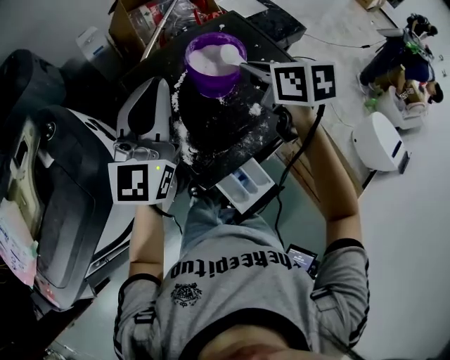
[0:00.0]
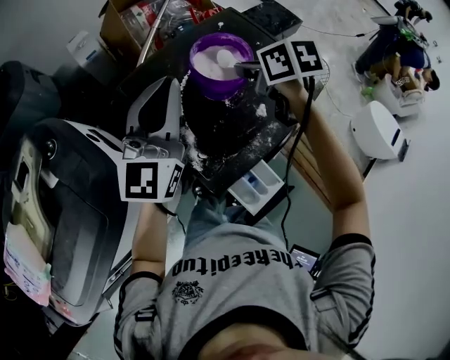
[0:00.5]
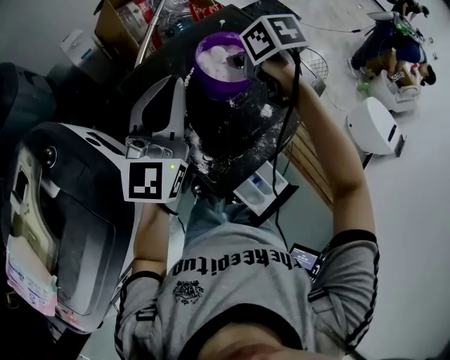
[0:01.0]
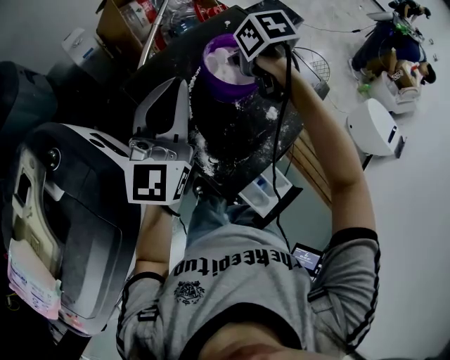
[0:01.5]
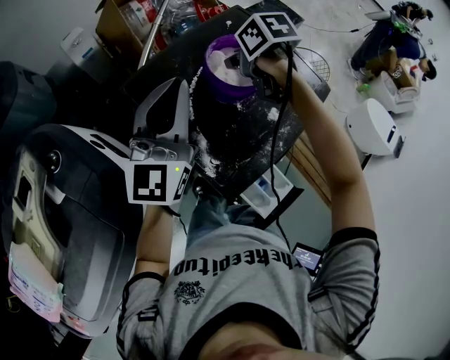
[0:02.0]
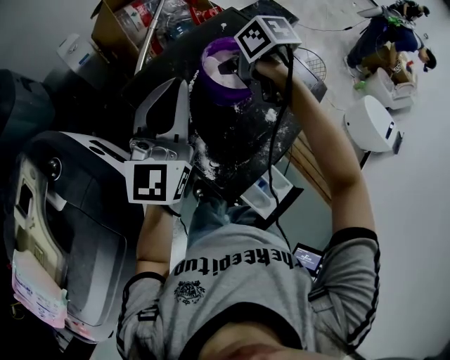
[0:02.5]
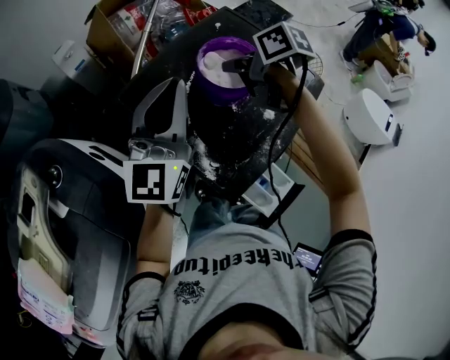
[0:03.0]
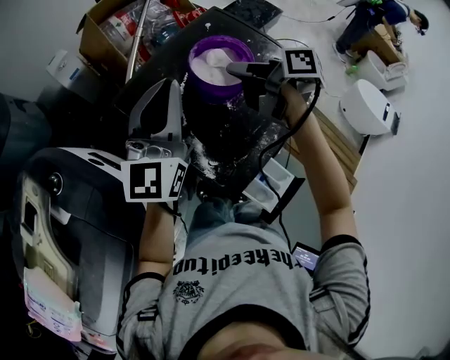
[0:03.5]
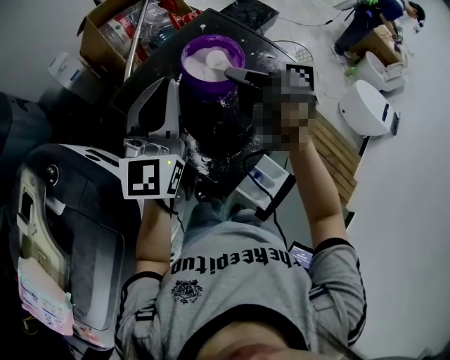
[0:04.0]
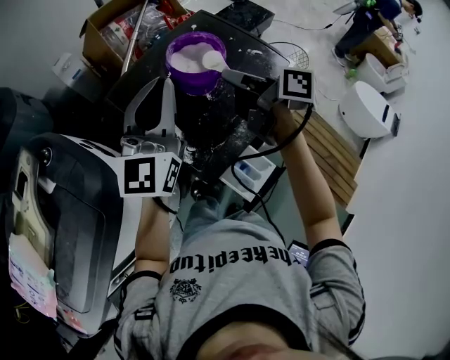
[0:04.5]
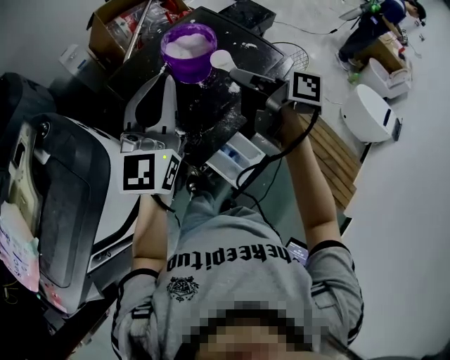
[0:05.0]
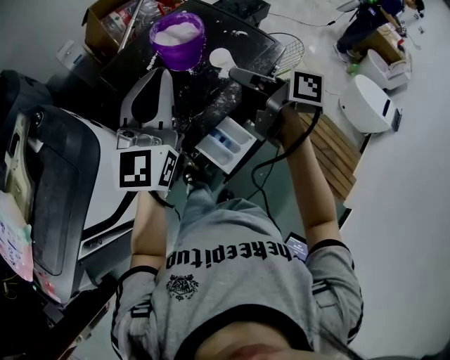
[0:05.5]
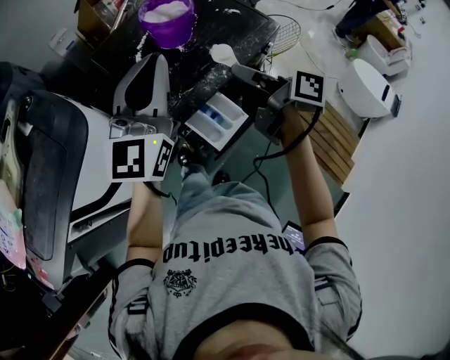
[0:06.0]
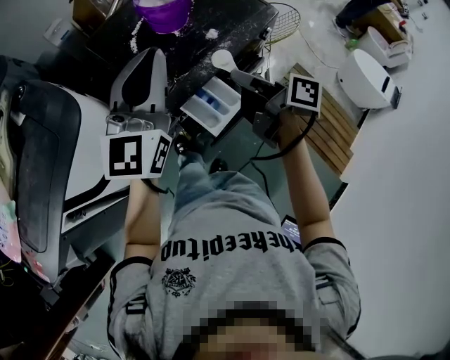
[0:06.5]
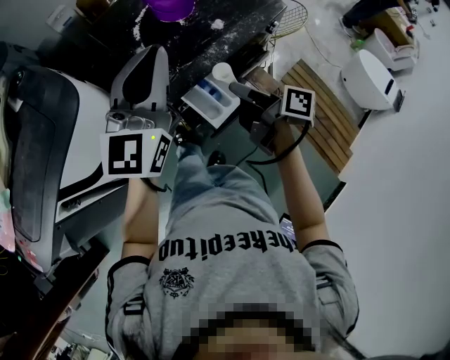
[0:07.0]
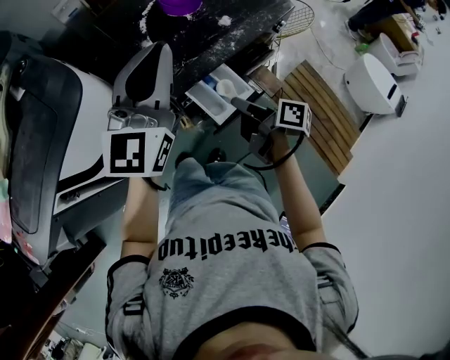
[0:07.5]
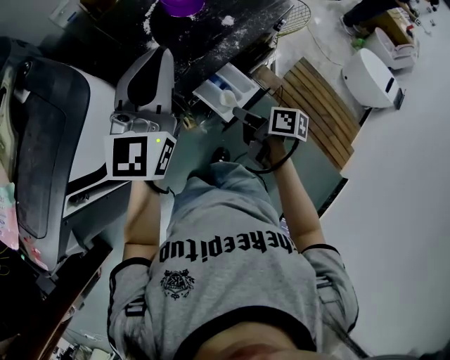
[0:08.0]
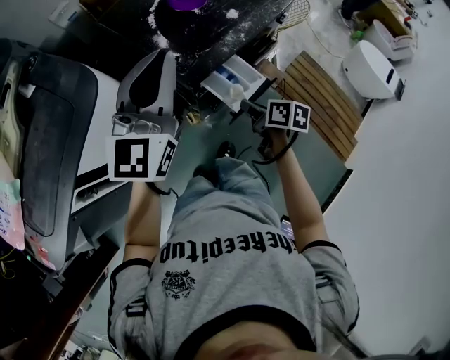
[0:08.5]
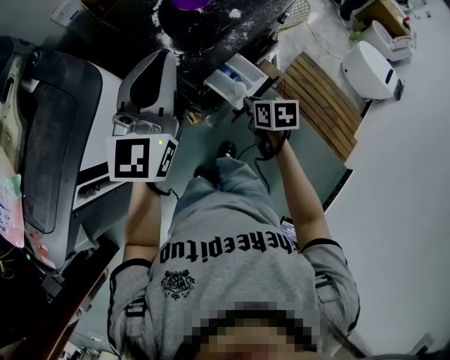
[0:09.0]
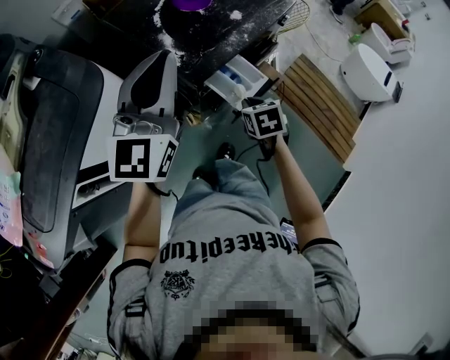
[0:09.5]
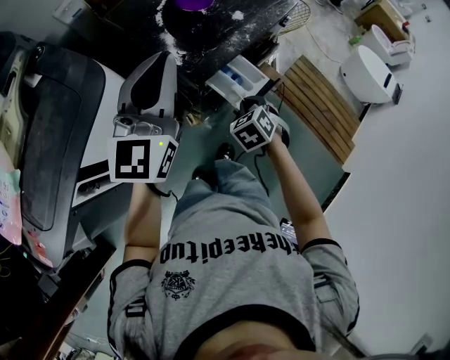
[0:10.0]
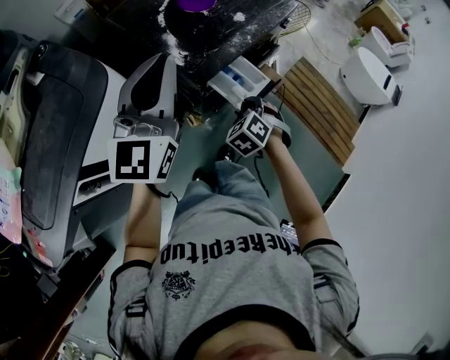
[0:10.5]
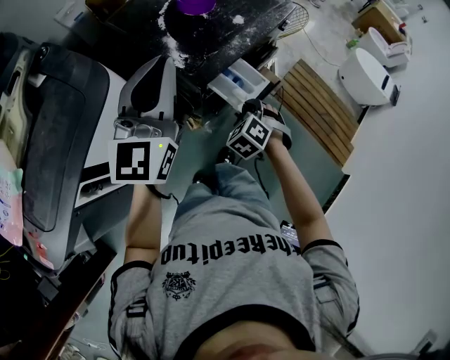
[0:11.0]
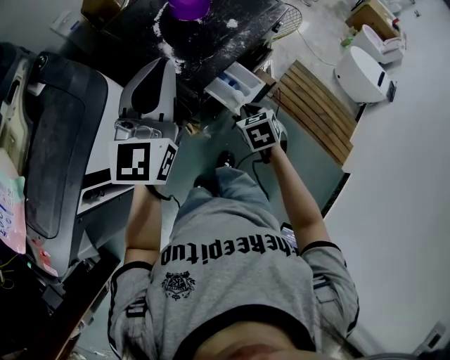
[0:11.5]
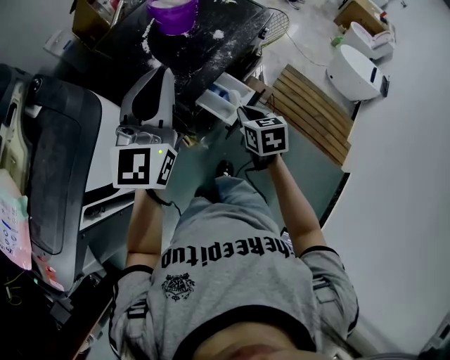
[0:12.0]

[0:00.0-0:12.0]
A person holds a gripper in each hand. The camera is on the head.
0:00.0 to 0:02.0: The right gripper moves forward, downward and to the left, approximately 15 cm, and changes its angle by about 30 degrees. The left gripper travels forward by approximately 5 cm.
0:02.0 to 0:04.0: The right gripper shifts some 10 cm backward, and points its fingers roughly 40 degrees further upward.
0:04.0 to 0:06.0: The grippers both shift backward by about 25 cm.
0:06.0 to 0:08.0: The left gripper shifts by about 5 cm. The right gripper moves downward and backward, roughly 25 cm, and rotates roughly 20 degrees.
0:08.0 to 0:10.0: The right gripper rotates around the line of its fingers by some 70 degrees, counterclockwise from behind, while the left gripper moves some 5 cm.
0:10.0 to 0:12.0: The right gripper heads upward, covering some 5 cm, and swivels approximately 40 degrees.

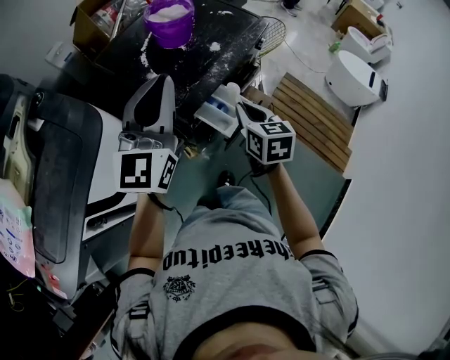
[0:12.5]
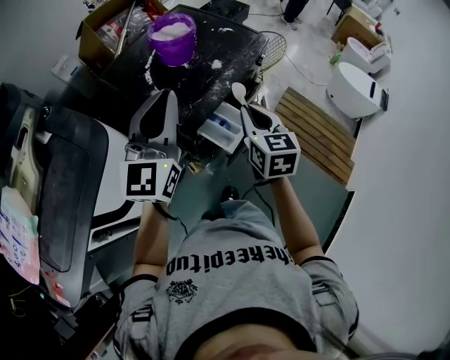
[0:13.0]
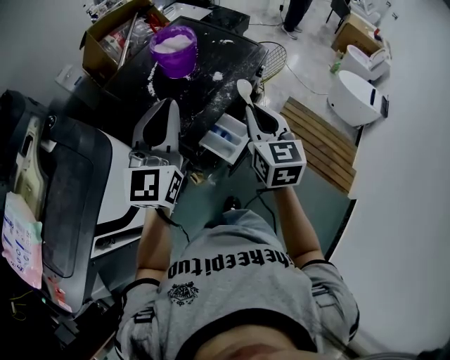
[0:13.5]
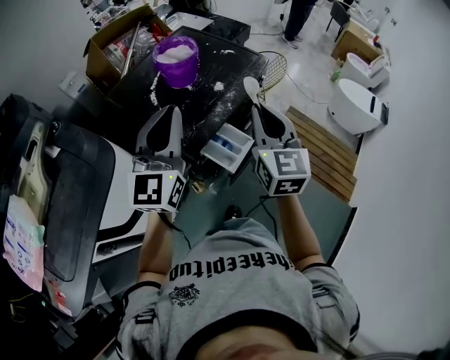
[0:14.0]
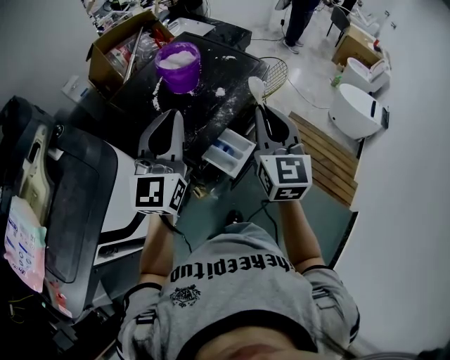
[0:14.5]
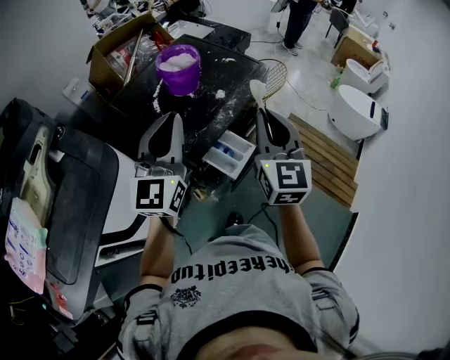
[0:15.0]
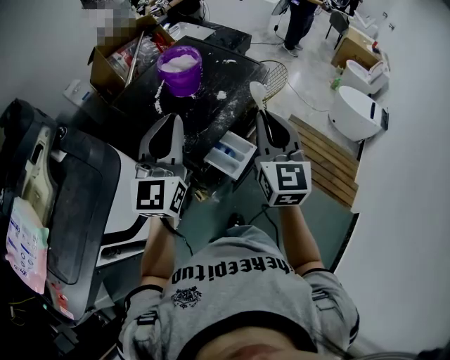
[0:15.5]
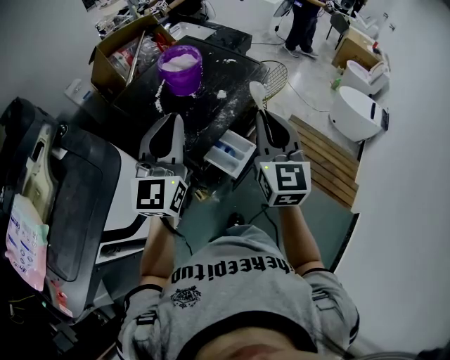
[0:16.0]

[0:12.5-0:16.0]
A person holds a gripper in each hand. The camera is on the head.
0:12.5 to 0:14.5: The right gripper is displaced upward by some 20 cm, and changes its angle by approximately 40 degrees.
0:14.5 to 0:16.0: There are only small adjustments of the grippers.

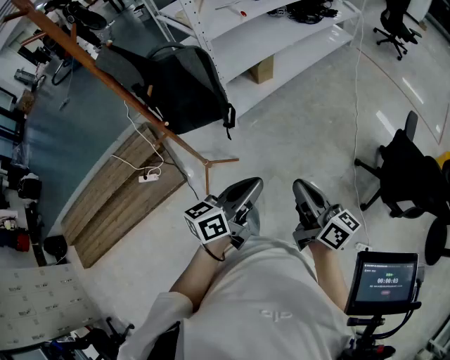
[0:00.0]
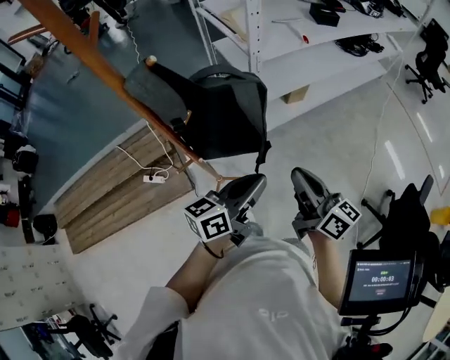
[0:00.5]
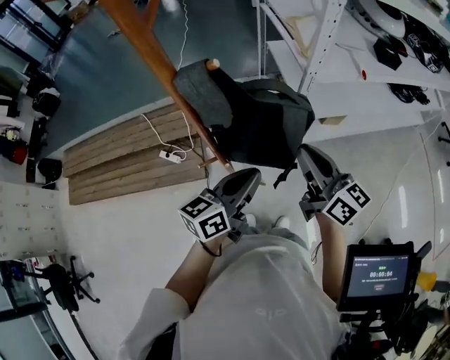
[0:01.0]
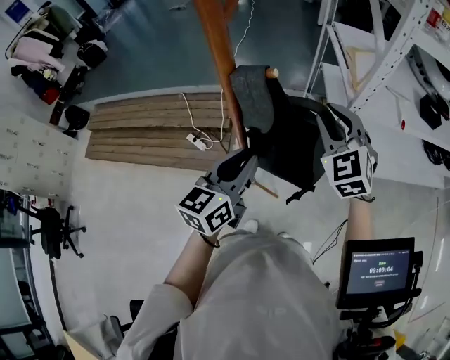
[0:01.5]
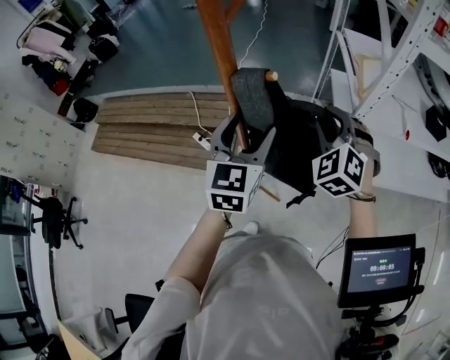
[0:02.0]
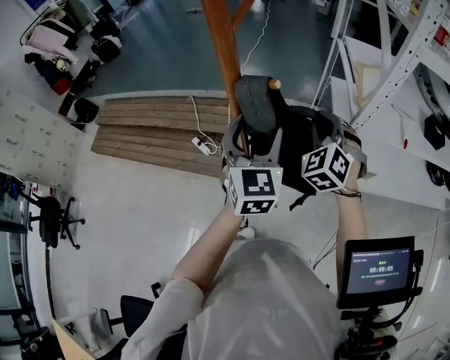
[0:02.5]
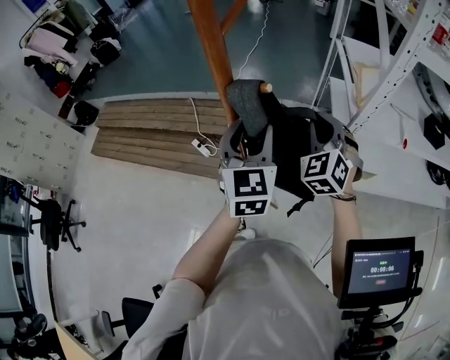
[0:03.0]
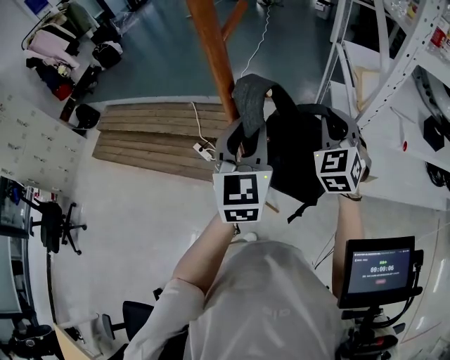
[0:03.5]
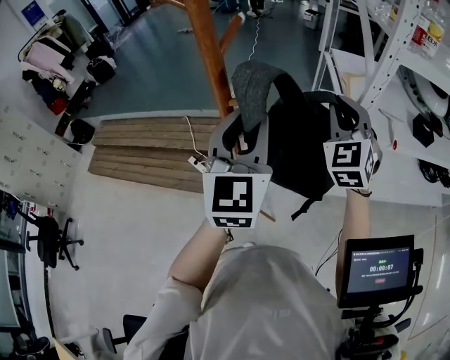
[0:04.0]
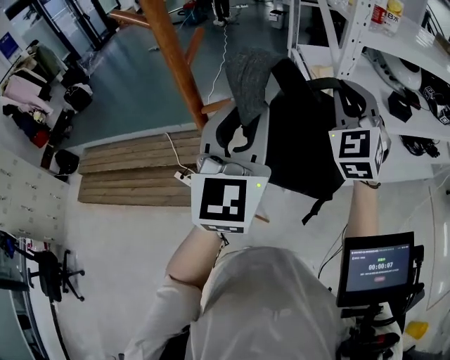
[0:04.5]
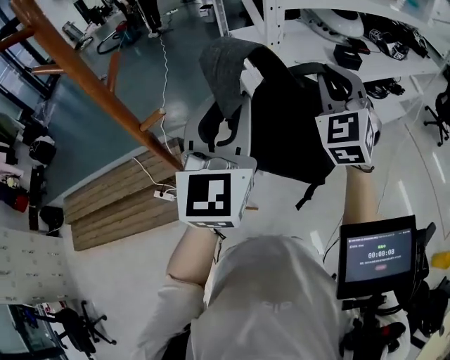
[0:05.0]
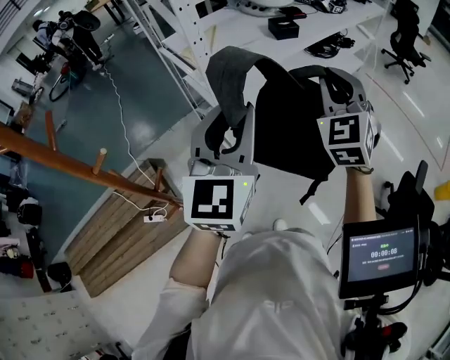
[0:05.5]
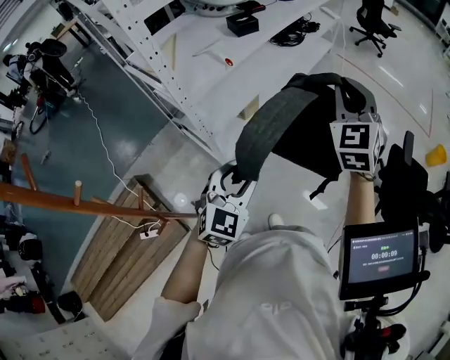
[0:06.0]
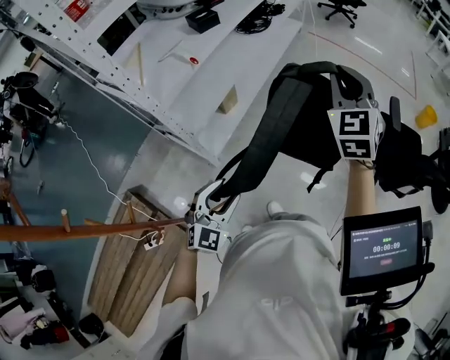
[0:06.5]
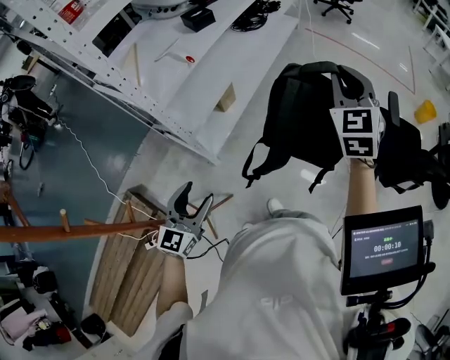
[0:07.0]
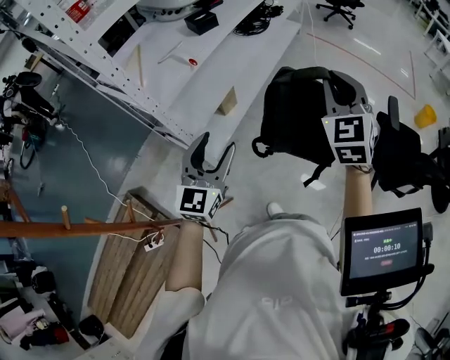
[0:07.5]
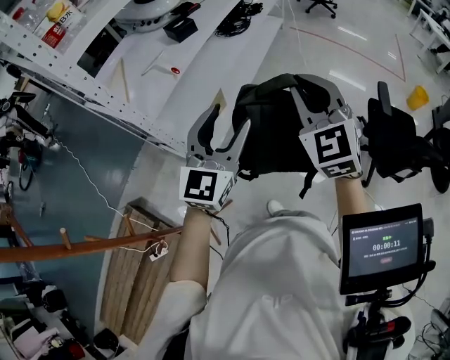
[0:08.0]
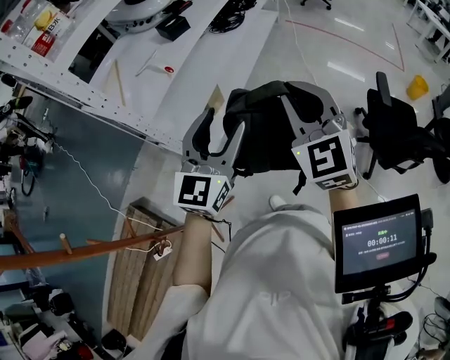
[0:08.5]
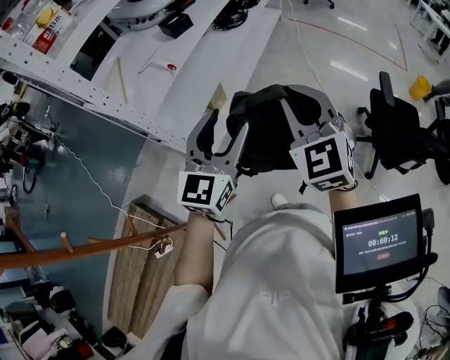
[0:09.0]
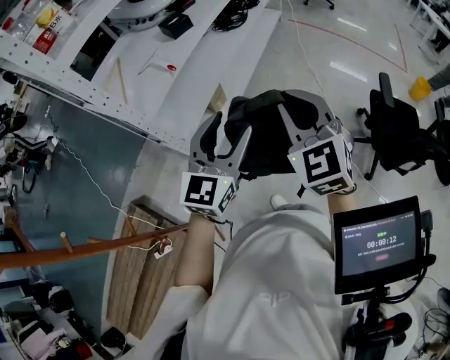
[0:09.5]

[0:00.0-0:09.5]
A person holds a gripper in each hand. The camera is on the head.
0:00.0 to 0:02.0: Both grippers are carried roughly 70 cm. The left gripper turns by approximately 80 degrees, and opens, while the right gripper rotates around the line of its fingers by approximately 100 degrees, counterclockwise from behind.
0:02.0 to 0:04.0: The grippers both shift upward by about 10 cm. The right gripper changes its angle by about 30 degrees. The left gripper closes.
0:04.0 to 0:05.5: The right gripper shifts by about 35 cm, and changes its angle by about 40 degrees. Meanwhile the left gripper changes place by roughly 30 cm, and swivels some 50 degrees.
0:05.5 to 0:07.5: The left gripper travels downward by approximately 20 cm, rotates approximately 30 degrees, and opens up. The right gripper moves some 20 cm, and changes its angle by some 20 degrees.
0:07.5 to 0:09.5: The left gripper travels to the right by roughly 10 cm. Meanwhile the right gripper is displaced backward and to the left by roughly 10 cm.

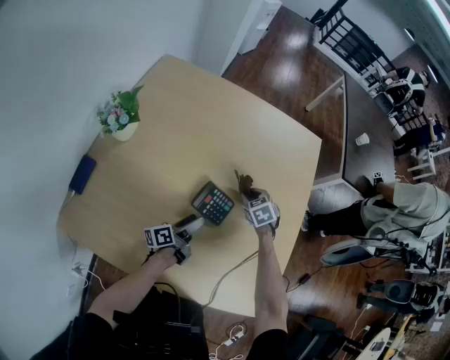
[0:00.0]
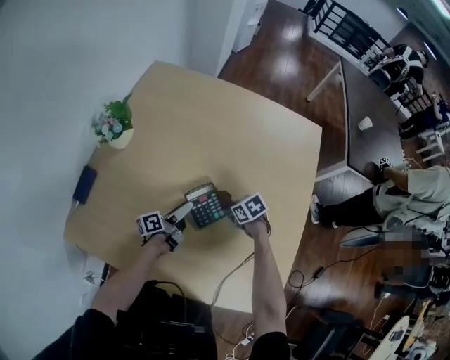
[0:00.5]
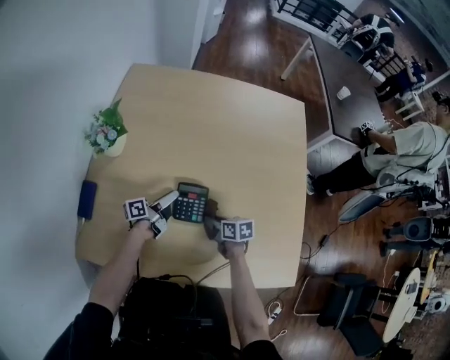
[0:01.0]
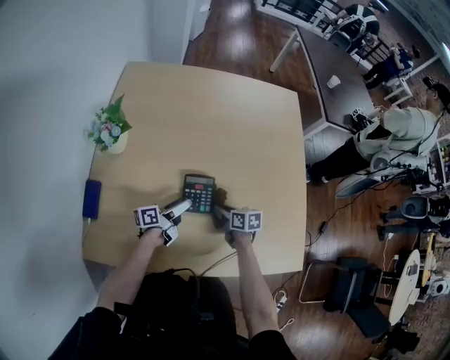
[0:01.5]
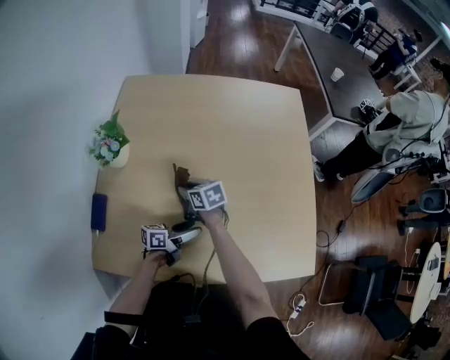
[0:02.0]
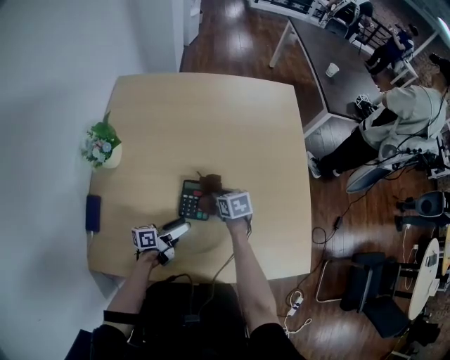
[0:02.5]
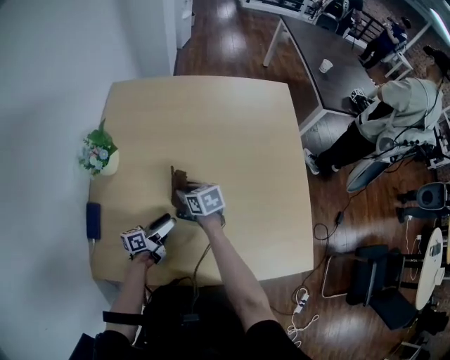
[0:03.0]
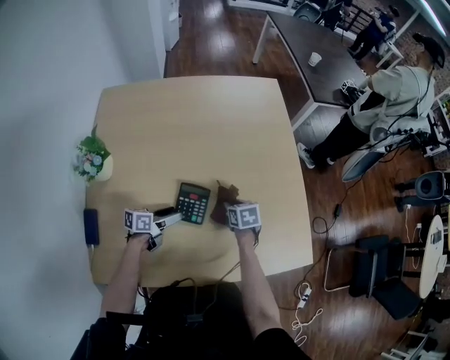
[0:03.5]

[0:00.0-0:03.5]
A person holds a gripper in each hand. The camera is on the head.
0:00.0 to 0:02.0: The left gripper shifts by roughly 10 cm, and changes its angle by some 40 degrees; the right gripper ends up approximately 25 cm from where it was, and rotates approximately 40 degrees.
0:02.0 to 0:03.5: The left gripper goes some 5 cm forward; the right gripper swings left and right, roughly 25 cm each way, with 2 reversals, and swivels some 30 degrees.
